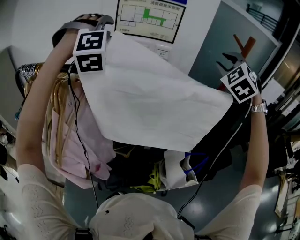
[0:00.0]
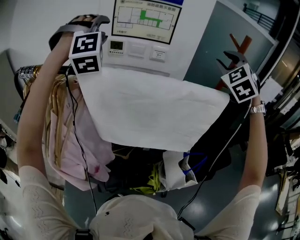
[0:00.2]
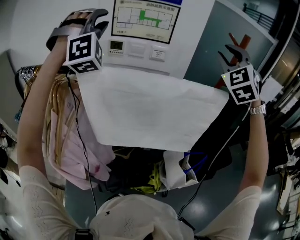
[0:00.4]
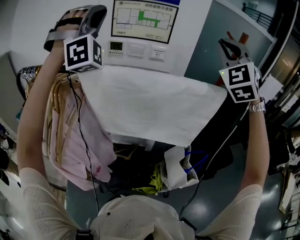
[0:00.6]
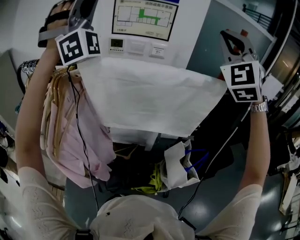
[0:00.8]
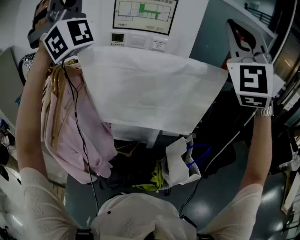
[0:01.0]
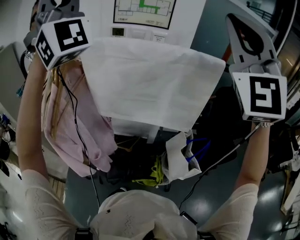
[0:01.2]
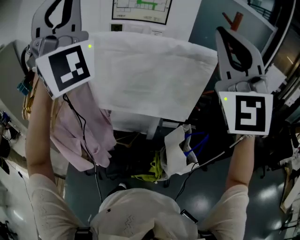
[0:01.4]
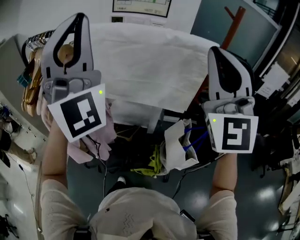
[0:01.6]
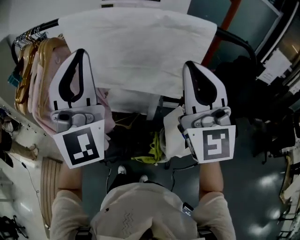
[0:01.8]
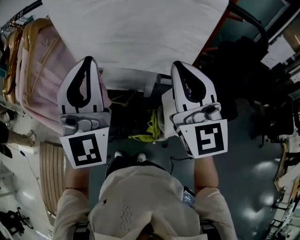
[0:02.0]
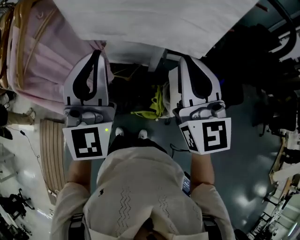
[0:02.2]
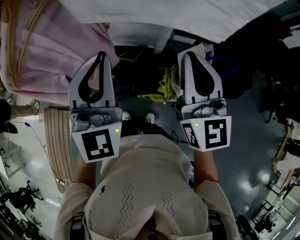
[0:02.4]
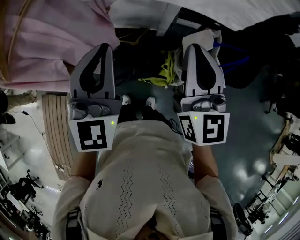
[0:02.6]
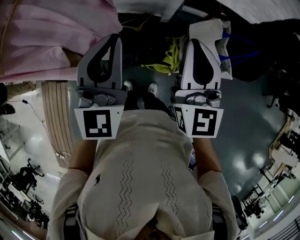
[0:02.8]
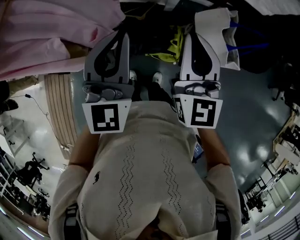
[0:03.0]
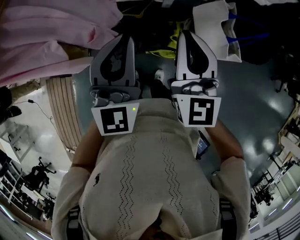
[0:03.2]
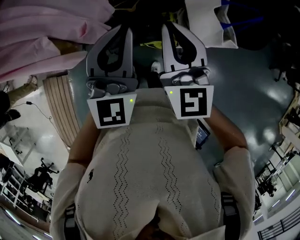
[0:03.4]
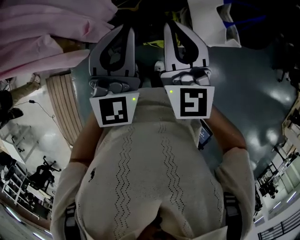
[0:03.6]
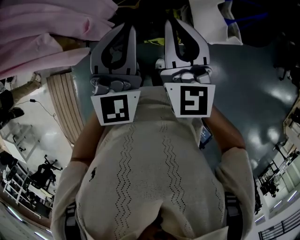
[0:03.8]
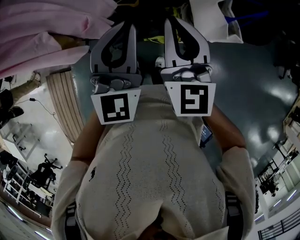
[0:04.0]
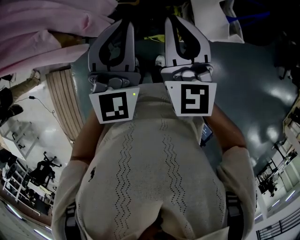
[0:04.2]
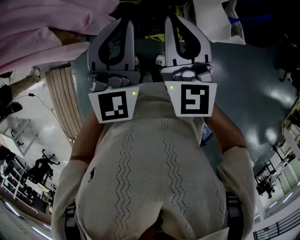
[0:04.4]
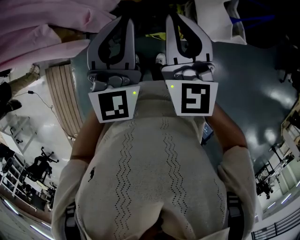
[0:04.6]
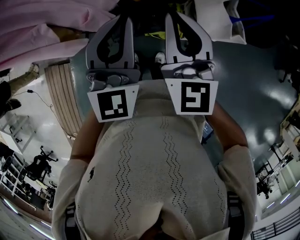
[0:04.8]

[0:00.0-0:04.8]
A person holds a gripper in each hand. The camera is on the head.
0:00.0 to 0:01.6: The grippers both shift backward by approximately 30 cm. The left gripper points its fingers roughly 50 degrees further upward, and closes its fingers. The right gripper tilts its fingers about 40 degrees upward, and closes its fingers.
0:01.6 to 0:03.2: Both grippers move downward, approximately 40 cm. The left gripper tips its fingers downward by roughly 40 degrees. The right gripper turns by roughly 50 degrees.
0:03.2 to 0:04.8: The grippers stay close to where they were, moving slightly.

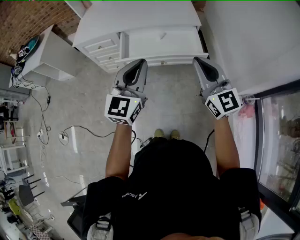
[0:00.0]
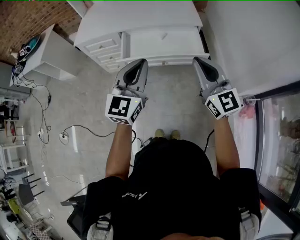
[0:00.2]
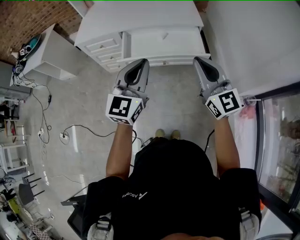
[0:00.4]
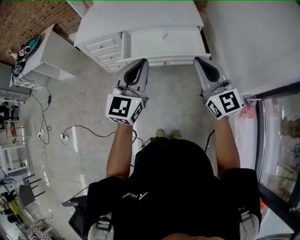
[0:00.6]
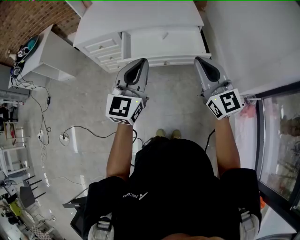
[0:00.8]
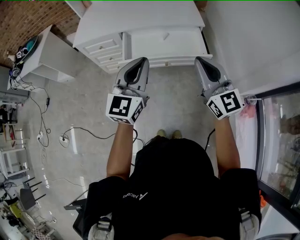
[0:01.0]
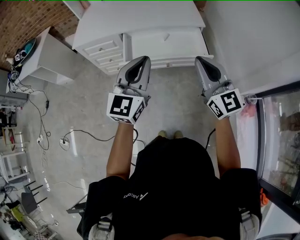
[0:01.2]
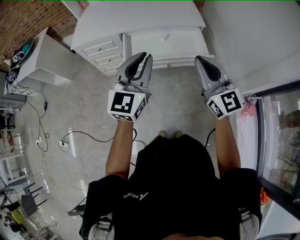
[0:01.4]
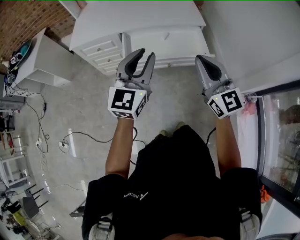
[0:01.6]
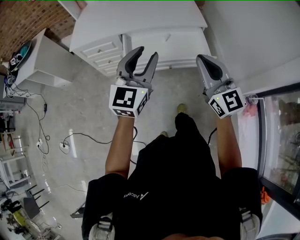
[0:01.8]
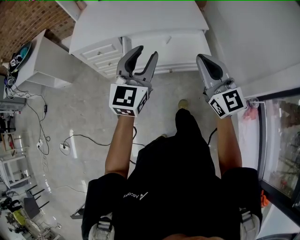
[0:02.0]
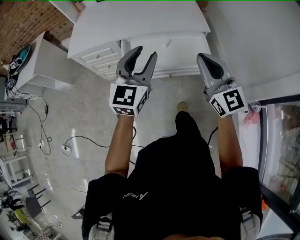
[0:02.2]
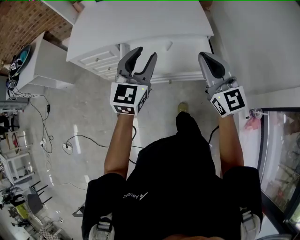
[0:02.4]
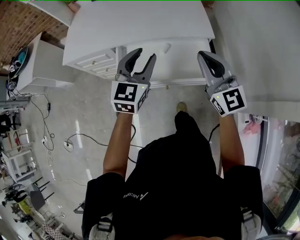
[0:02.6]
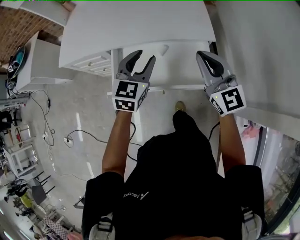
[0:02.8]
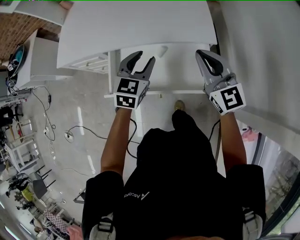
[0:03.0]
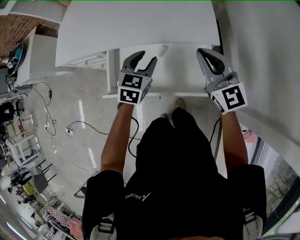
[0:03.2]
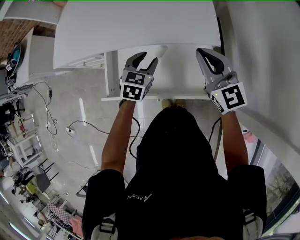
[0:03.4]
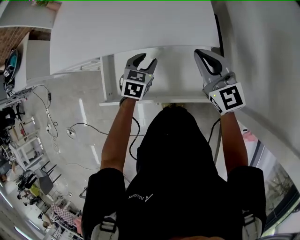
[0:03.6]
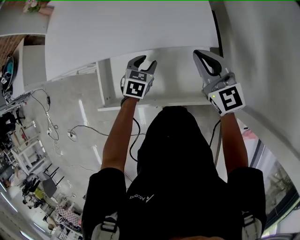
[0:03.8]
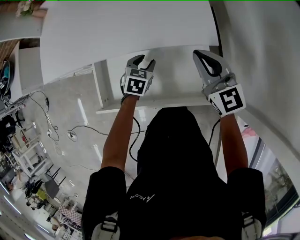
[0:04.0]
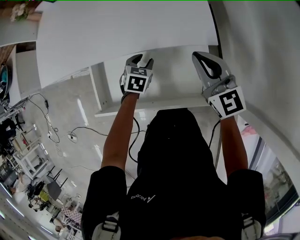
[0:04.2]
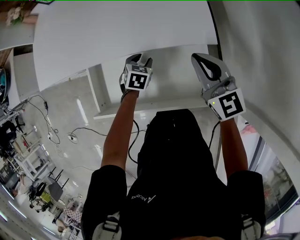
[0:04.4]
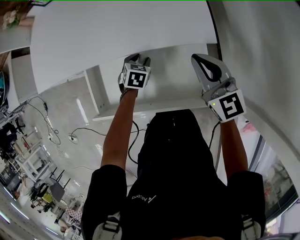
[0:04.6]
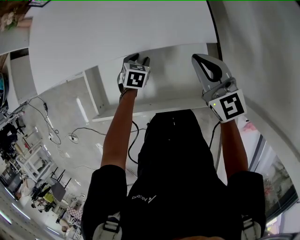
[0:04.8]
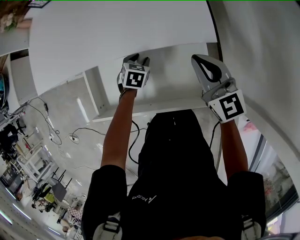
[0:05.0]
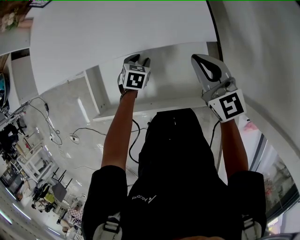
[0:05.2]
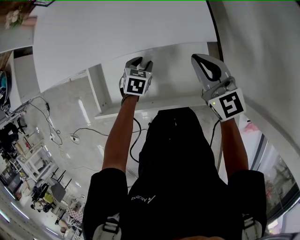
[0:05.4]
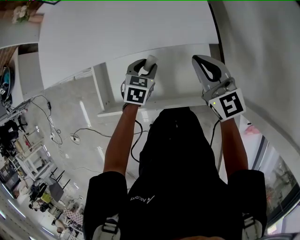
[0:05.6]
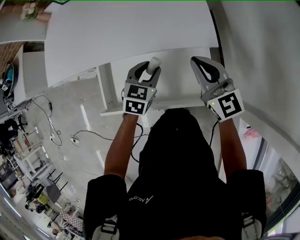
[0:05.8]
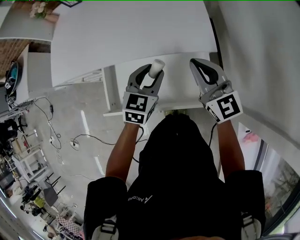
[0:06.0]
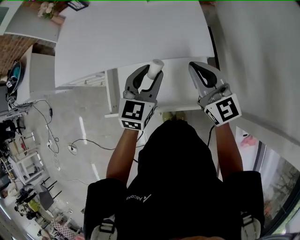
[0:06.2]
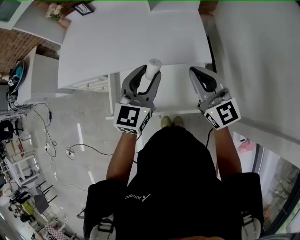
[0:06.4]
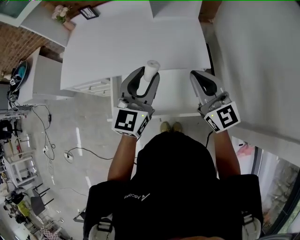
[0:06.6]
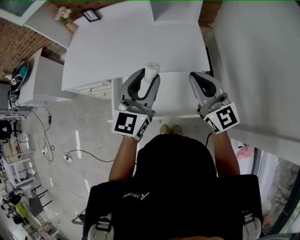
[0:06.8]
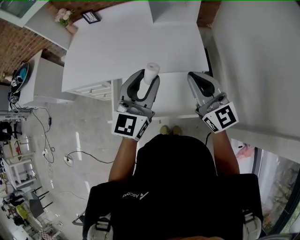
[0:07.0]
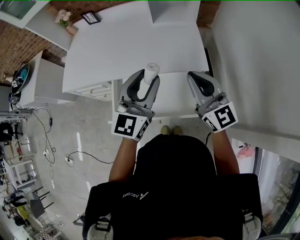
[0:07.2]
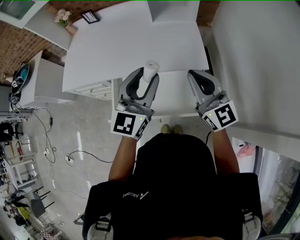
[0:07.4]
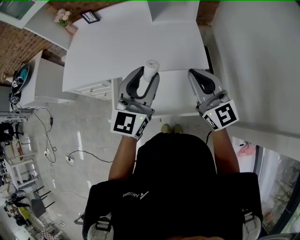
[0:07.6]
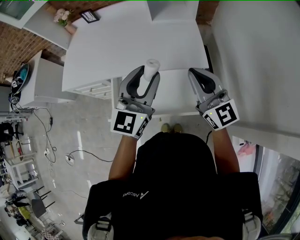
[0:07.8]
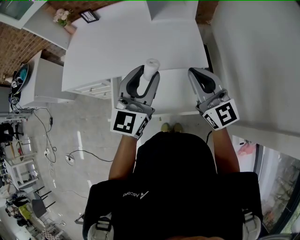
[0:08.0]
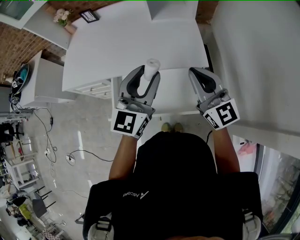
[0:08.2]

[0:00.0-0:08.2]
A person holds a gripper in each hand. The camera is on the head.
0:00.0 to 0:01.6: The left gripper is displaced forward and to the left by roughly 10 cm, and opens its fingers, while the right gripper moves to the left, about 5 cm.
0:01.6 to 0:03.2: The left gripper heads forward and downward, covering roughly 40 cm, and tips its fingers downward by about 40 degrees. The right gripper moves forward, some 35 cm.
0:03.2 to 0:05.0: The left gripper shifts approximately 25 cm downward, and changes its angle by about 30 degrees; the right gripper shifts some 15 cm downward and forward.
0:05.0 to 0:06.6: The left gripper goes approximately 40 cm upward, and tips its fingers upward by about 60 degrees. The right gripper moves upward and backward, about 20 cm.
0:06.6 to 0:08.2: There are only small adjustments of the grippers.

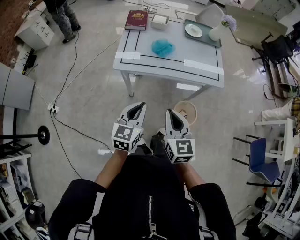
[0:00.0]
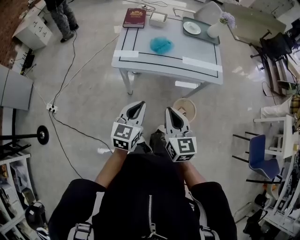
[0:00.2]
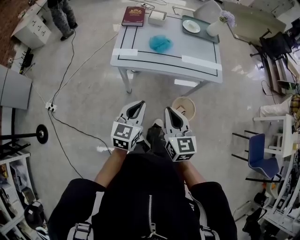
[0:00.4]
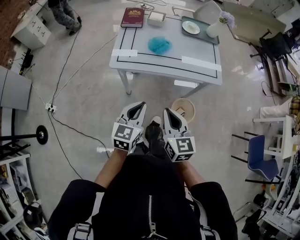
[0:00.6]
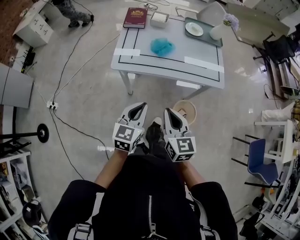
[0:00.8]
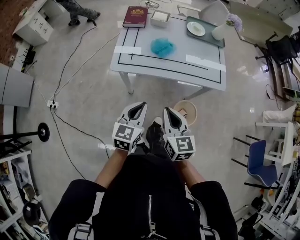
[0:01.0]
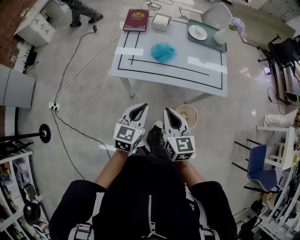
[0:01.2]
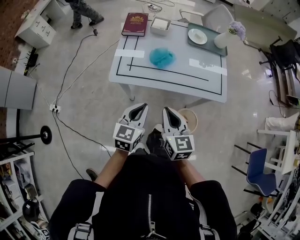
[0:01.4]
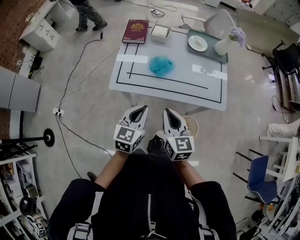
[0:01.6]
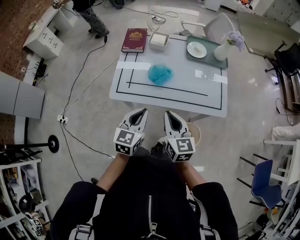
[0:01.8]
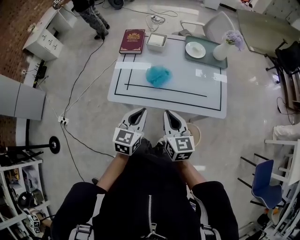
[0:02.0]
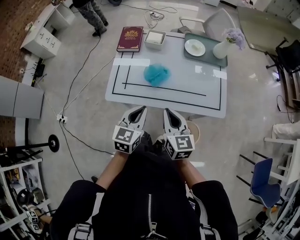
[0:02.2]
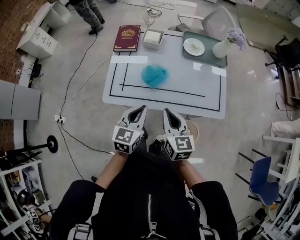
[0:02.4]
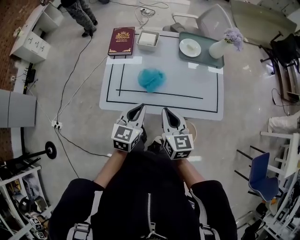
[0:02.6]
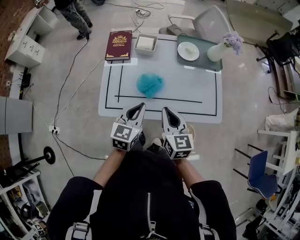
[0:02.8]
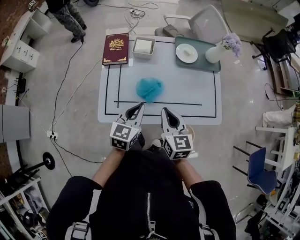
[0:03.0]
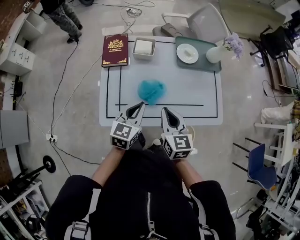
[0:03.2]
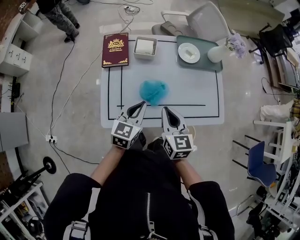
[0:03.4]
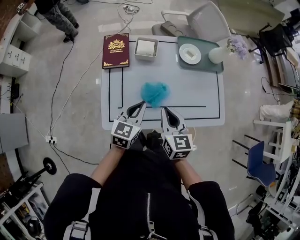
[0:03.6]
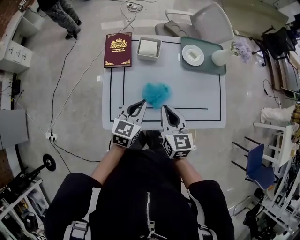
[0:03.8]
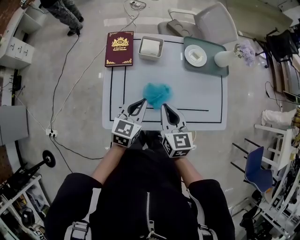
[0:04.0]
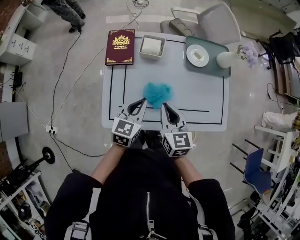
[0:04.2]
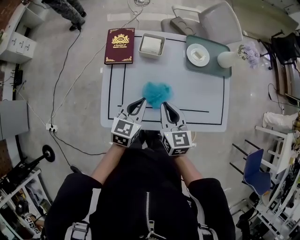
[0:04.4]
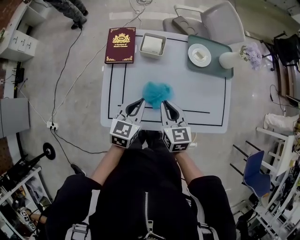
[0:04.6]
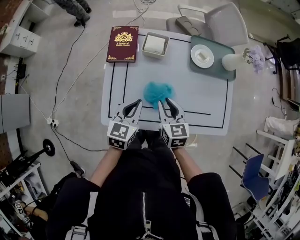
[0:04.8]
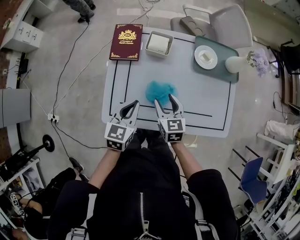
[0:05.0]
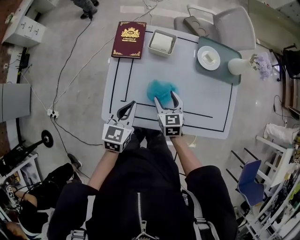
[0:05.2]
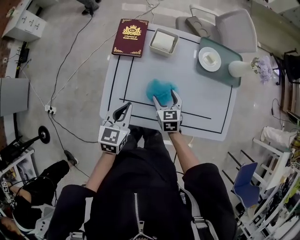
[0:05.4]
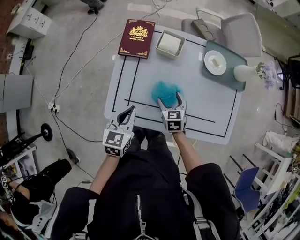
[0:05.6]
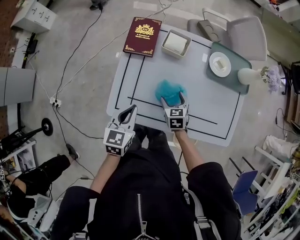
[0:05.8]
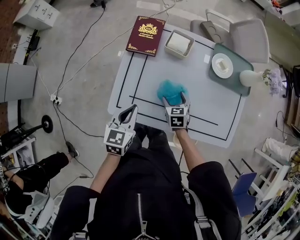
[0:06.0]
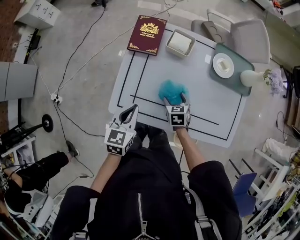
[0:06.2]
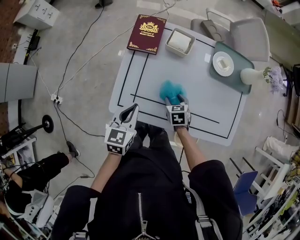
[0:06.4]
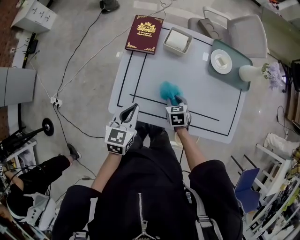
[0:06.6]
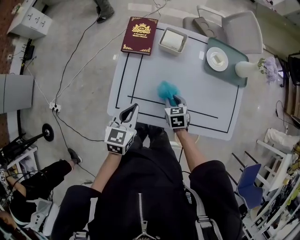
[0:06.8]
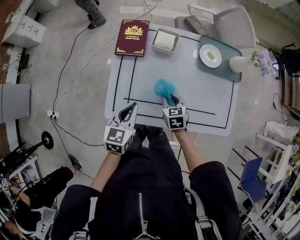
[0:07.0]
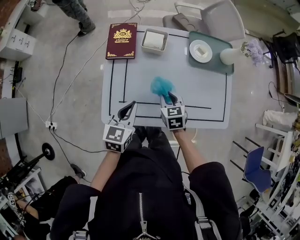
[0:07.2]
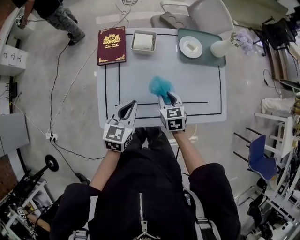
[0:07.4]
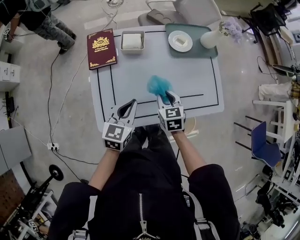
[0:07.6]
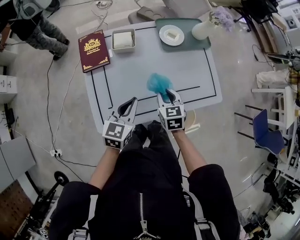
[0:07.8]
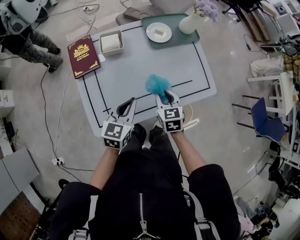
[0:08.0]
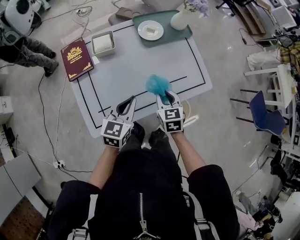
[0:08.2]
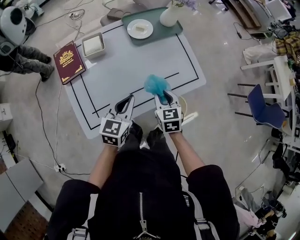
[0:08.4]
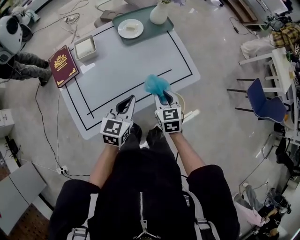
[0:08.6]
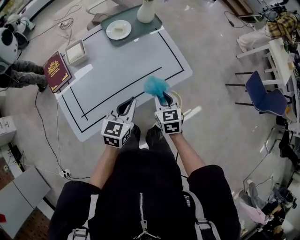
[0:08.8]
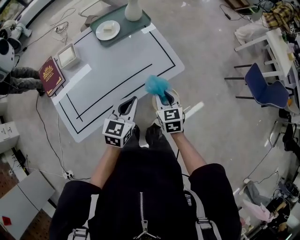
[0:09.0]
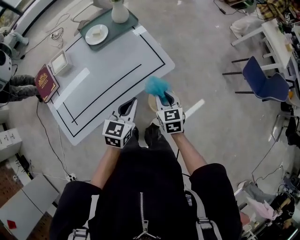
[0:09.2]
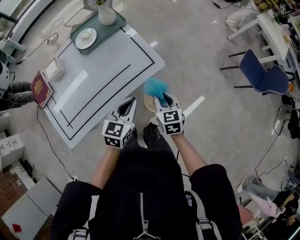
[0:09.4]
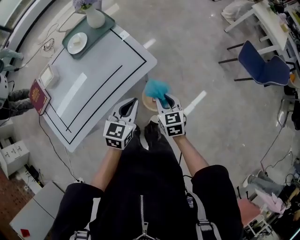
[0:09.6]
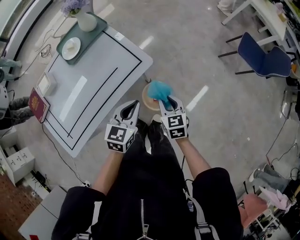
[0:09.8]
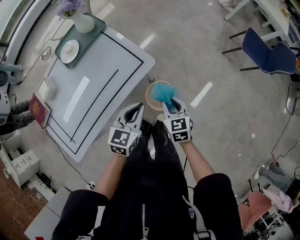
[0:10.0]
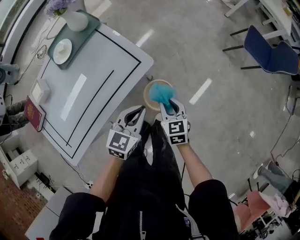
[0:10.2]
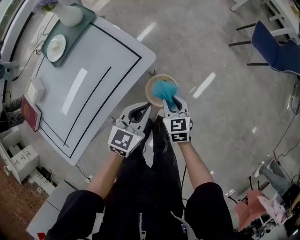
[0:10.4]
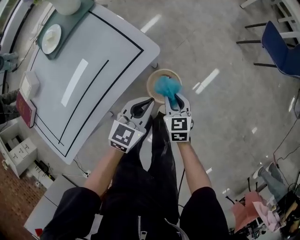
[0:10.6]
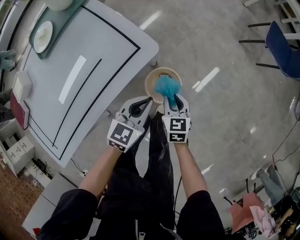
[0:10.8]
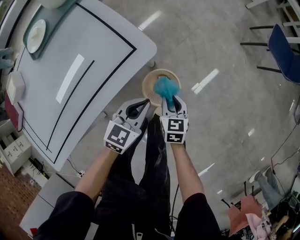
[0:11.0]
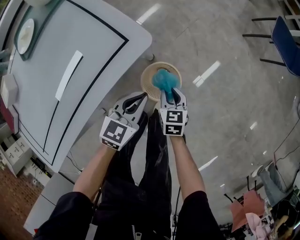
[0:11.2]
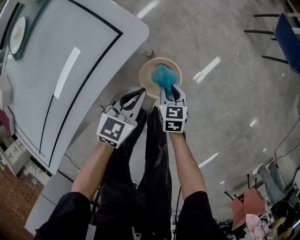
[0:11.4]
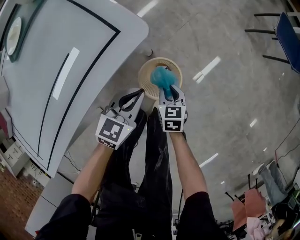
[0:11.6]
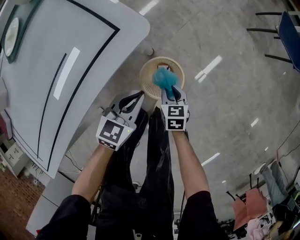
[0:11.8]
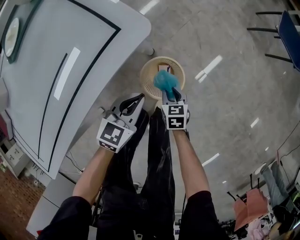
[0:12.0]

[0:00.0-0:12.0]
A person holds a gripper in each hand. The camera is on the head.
0:00.0 to 0:01.6: The two grippers go roughly 15 cm forward.
0:01.6 to 0:03.0: Both grippers travel together forward, approximately 20 cm.
0:03.0 to 0:04.4: The left gripper goes about 10 cm forward. Meanwhile the right gripper shifts approximately 10 cm forward and to the left.
0:04.4 to 0:06.0: The left gripper is displaced to the left and backward by some 10 cm, while the right gripper moves downward, some 20 cm, turns by about 30 degrees, and opens its fingers.
0:06.0 to 0:07.6: The right gripper shifts roughly 10 cm upward, and closes; the left gripper goes approximately 10 cm to the right, and changes its angle by roughly 30 degrees.
0:07.6 to 0:09.0: Both grippers travel together to the right, roughly 30 cm. The left gripper turns by approximately 20 degrees; the right gripper changes its angle by about 20 degrees.
0:09.0 to 0:10.4: The two grippers go roughly 25 cm to the right and downward. The left gripper swivels roughly 30 degrees.
0:10.4 to 0:12.0: The grippers both shift downward by about 25 cm.
